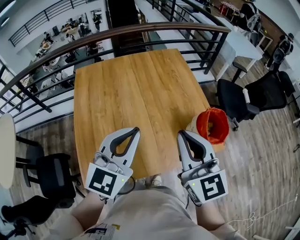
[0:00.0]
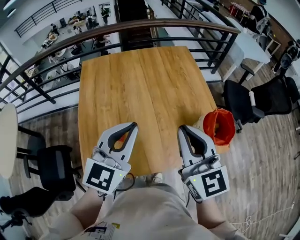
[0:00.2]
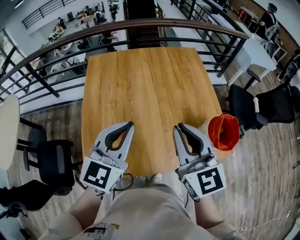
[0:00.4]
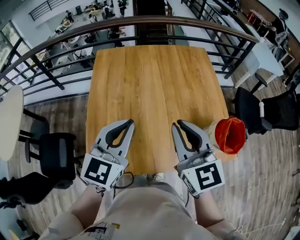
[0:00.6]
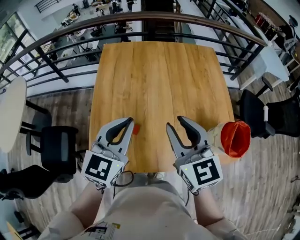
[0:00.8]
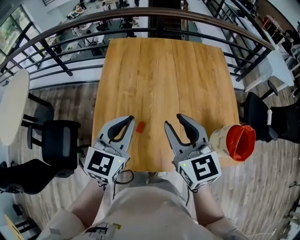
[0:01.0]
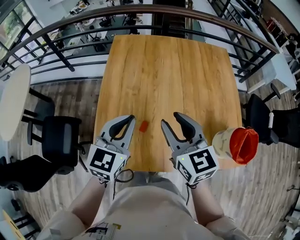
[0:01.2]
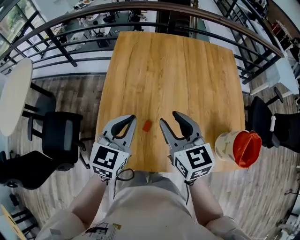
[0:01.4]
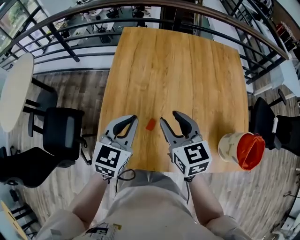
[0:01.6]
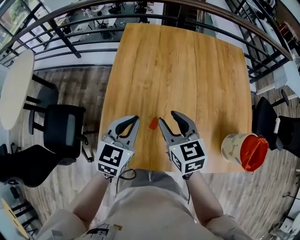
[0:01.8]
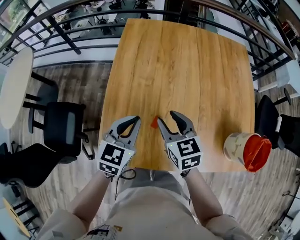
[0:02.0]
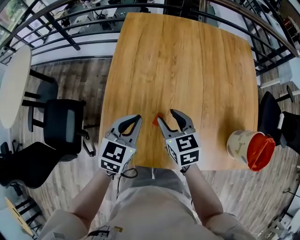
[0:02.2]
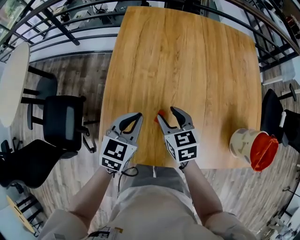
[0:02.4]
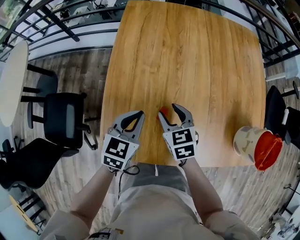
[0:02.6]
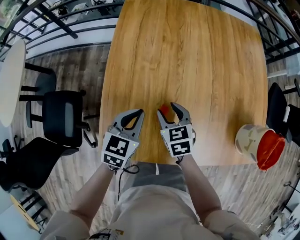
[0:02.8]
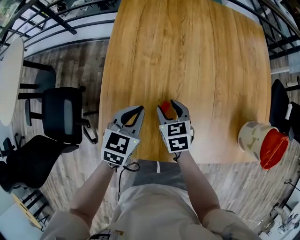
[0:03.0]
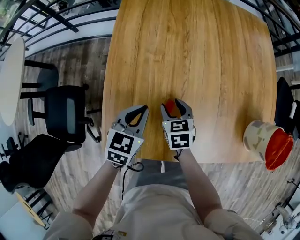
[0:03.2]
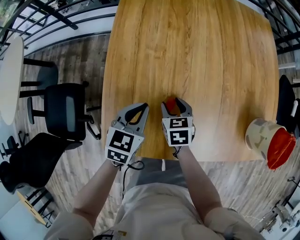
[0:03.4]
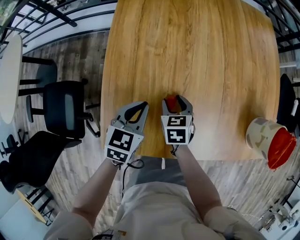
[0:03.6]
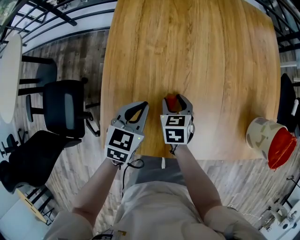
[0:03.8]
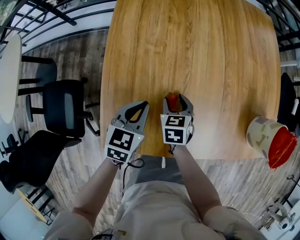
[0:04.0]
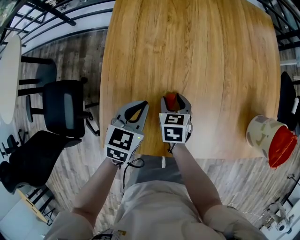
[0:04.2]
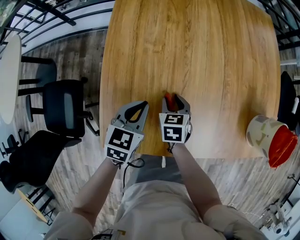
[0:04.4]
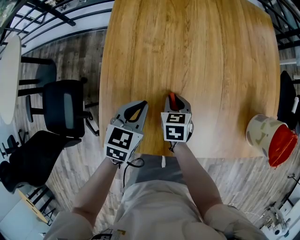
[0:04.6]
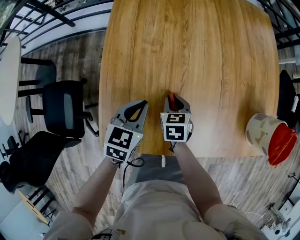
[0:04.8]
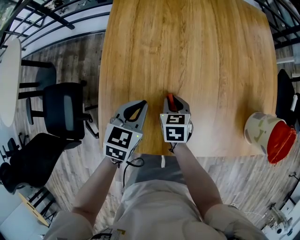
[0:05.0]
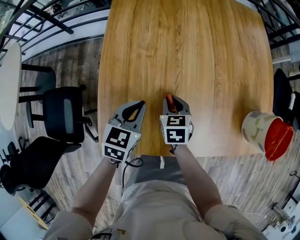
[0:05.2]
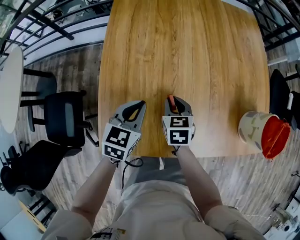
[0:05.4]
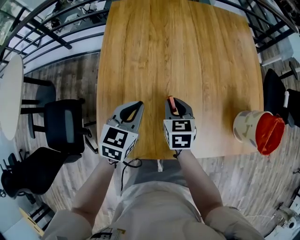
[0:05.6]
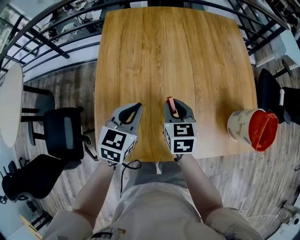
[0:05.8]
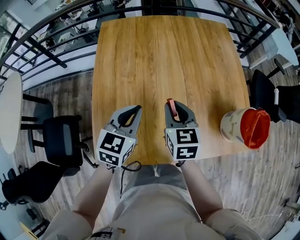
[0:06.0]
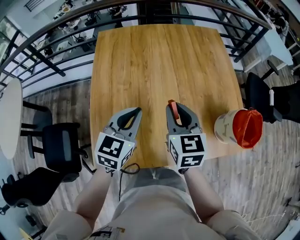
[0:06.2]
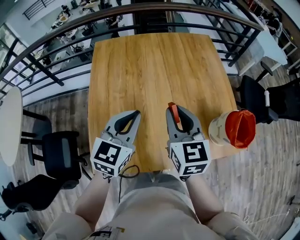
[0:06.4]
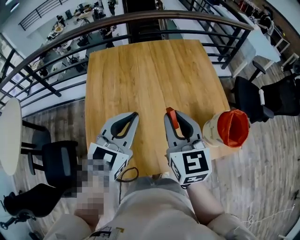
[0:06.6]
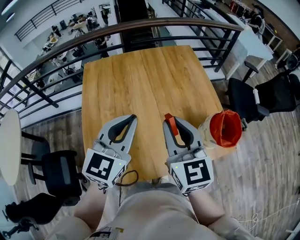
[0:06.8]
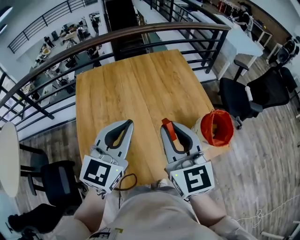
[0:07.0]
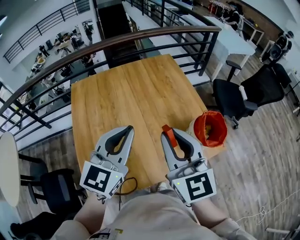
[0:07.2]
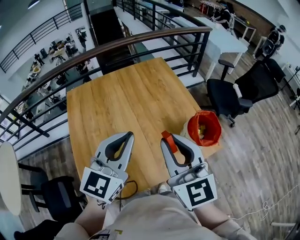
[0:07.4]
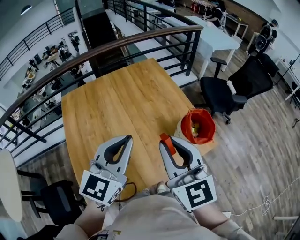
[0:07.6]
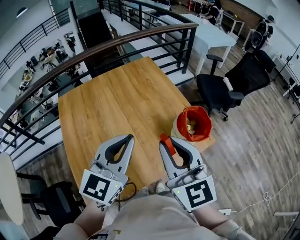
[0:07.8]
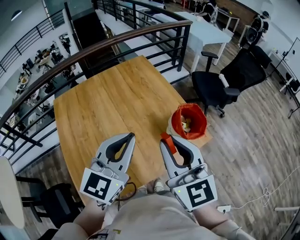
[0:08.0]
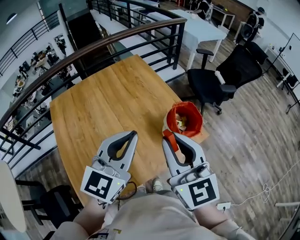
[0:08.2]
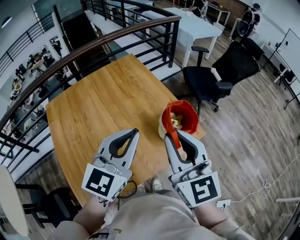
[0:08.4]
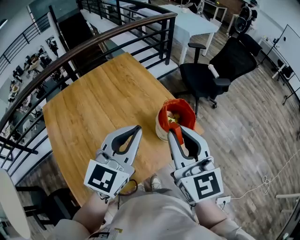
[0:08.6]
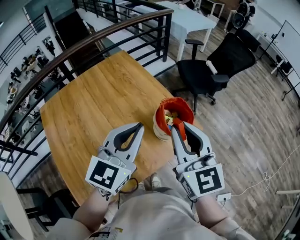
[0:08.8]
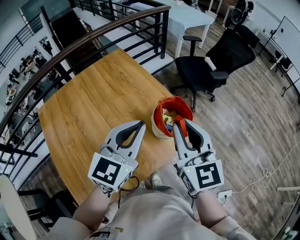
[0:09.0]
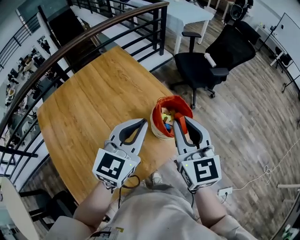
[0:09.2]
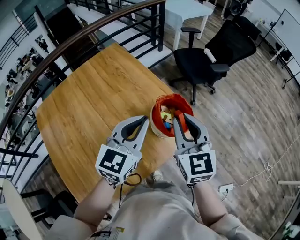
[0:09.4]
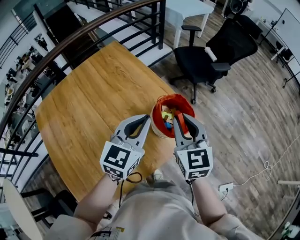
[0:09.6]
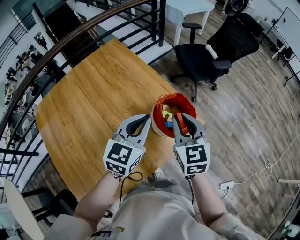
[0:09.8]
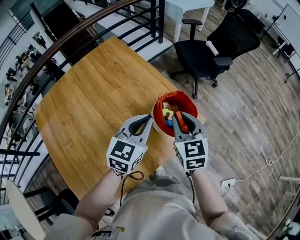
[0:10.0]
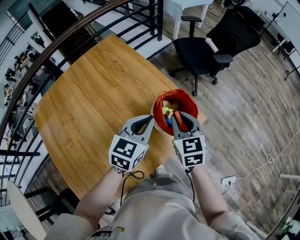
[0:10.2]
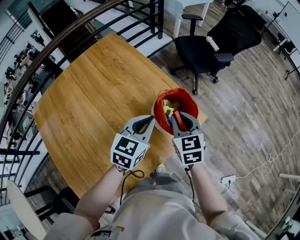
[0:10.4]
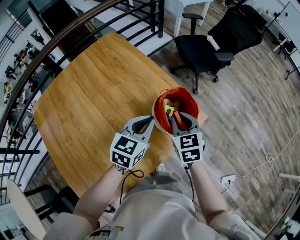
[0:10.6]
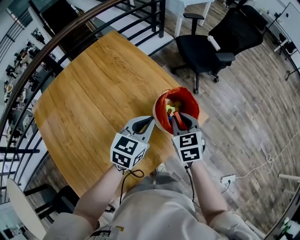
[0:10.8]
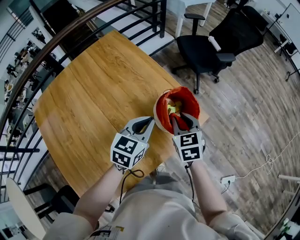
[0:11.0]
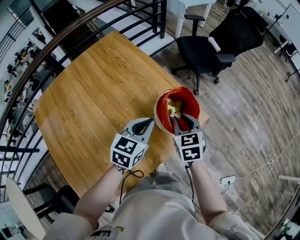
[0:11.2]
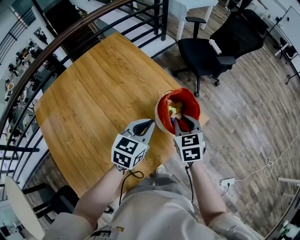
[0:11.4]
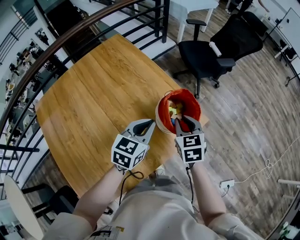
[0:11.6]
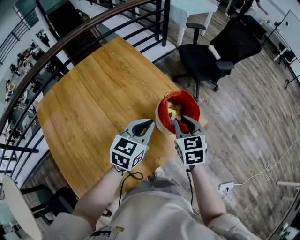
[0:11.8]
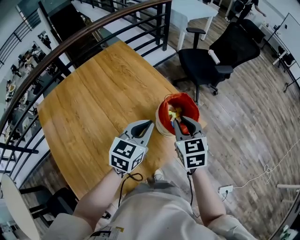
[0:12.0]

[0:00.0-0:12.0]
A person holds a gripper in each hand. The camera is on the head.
0:00.0 to 0:01.6: The grippers both shift to the left, downward and forward by some 30 cm. The right gripper changes its angle by about 30 degrees, and opens its fingers. The left gripper swivels some 30 degrees.
0:01.6 to 0:03.0: Both grippers travel together downward, about 20 cm. The right gripper changes its angle by about 20 degrees.
0:03.0 to 0:04.4: The right gripper travels downward by roughly 5 cm.
0:04.4 to 0:06.0: Both grippers travel together upward and to the right, approximately 20 cm. The right gripper rotates roughly 20 degrees.
0:06.0 to 0:07.6: The right gripper heads upward, to the right and backward, covering roughly 35 cm, and changes its angle by about 30 degrees. The left gripper goes roughly 30 cm upward and to the right, and swivels roughly 30 degrees.
0:07.6 to 0:09.0: The two grippers go roughly 15 cm to the right and forward. The right gripper changes its angle by approximately 20 degrees.
0:09.0 to 0:10.4: The grippers both shift downward and forward by about 20 cm. The right gripper changes its angle by roughly 30 degrees, while the left gripper rotates about 20 degrees.
0:10.4 to 0:12.0: The right gripper moves some 5 cm, while the left gripper shifts by approximately 5 cm.

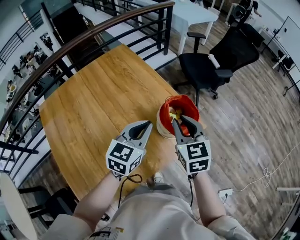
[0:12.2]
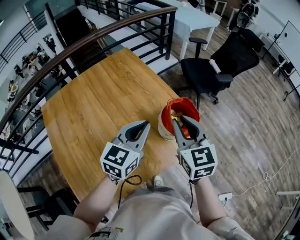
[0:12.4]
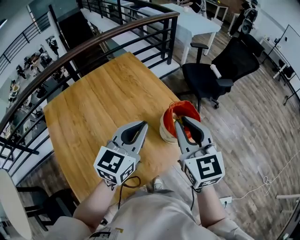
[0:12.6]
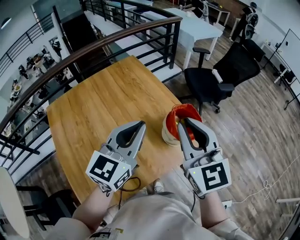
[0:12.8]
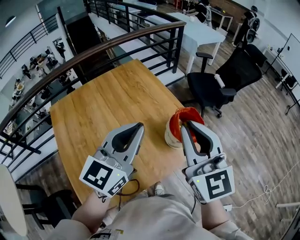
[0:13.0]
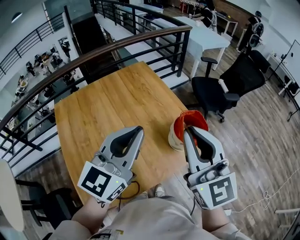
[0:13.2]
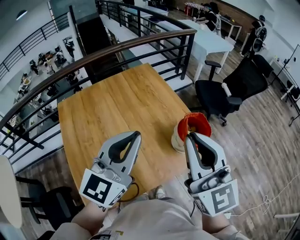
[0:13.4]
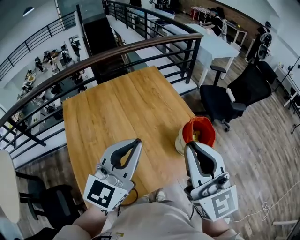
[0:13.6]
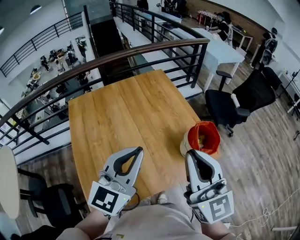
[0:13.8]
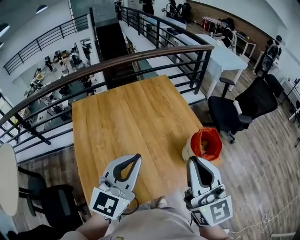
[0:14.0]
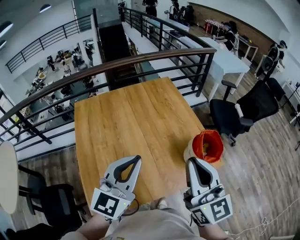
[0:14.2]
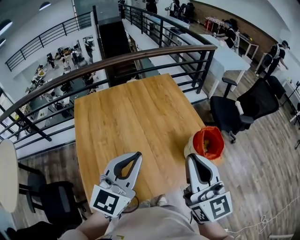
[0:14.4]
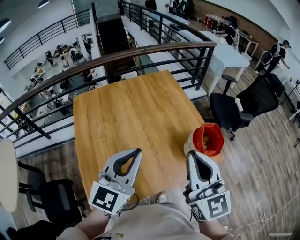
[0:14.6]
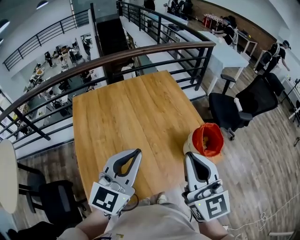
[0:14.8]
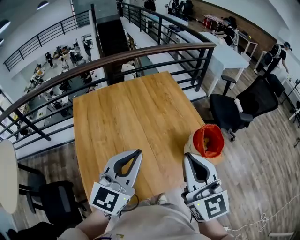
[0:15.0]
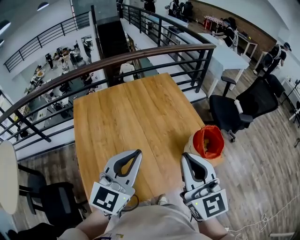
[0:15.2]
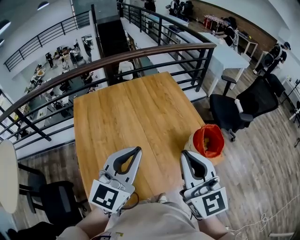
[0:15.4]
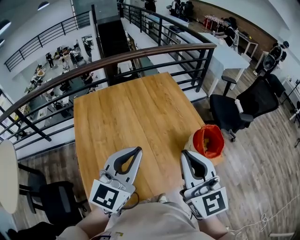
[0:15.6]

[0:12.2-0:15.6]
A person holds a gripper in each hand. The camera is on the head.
0:12.2 to 0:13.8: The two grippers go some 30 cm upward, backward and to the left. The left gripper turns by about 30 degrees; the right gripper tips its fingers upward by approximately 30 degrees.
0:13.8 to 0:15.6: The grippers make only small movements.

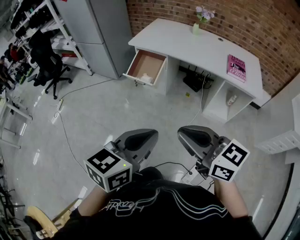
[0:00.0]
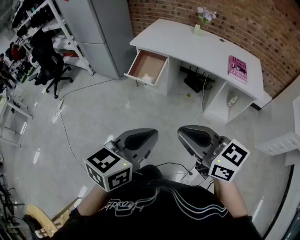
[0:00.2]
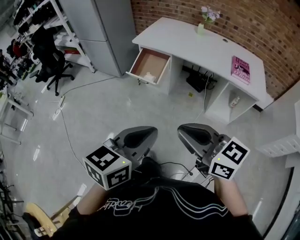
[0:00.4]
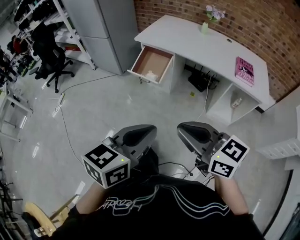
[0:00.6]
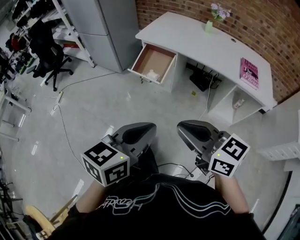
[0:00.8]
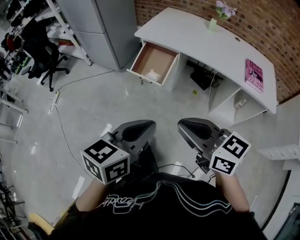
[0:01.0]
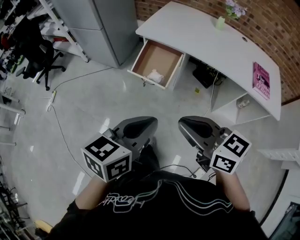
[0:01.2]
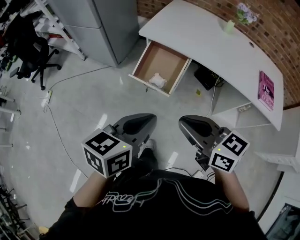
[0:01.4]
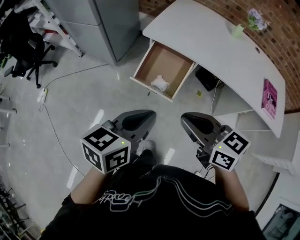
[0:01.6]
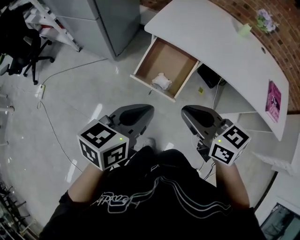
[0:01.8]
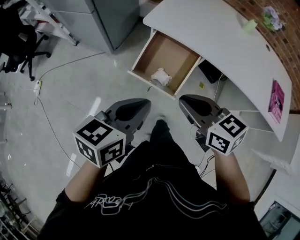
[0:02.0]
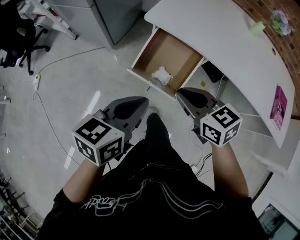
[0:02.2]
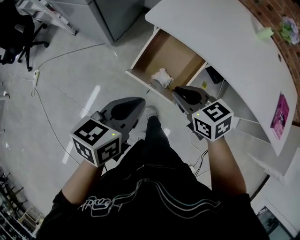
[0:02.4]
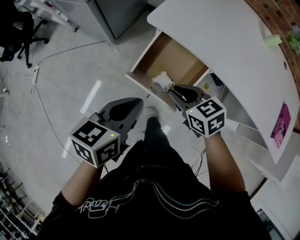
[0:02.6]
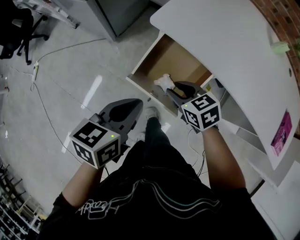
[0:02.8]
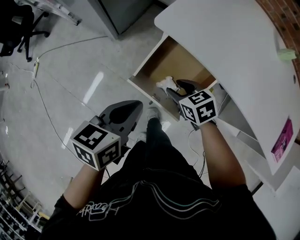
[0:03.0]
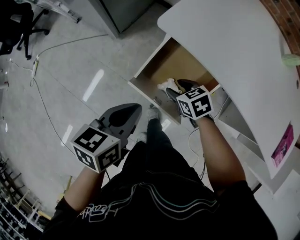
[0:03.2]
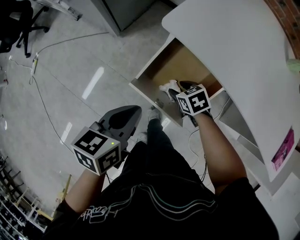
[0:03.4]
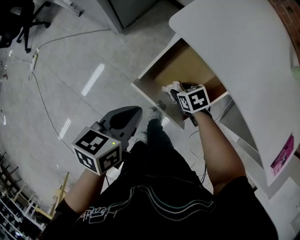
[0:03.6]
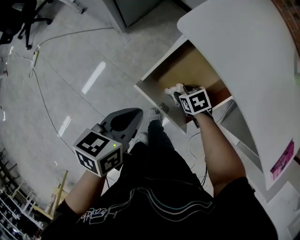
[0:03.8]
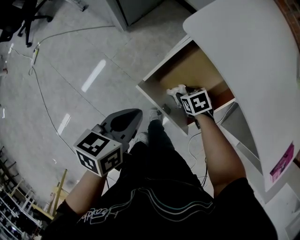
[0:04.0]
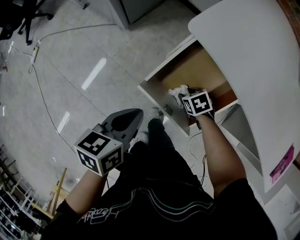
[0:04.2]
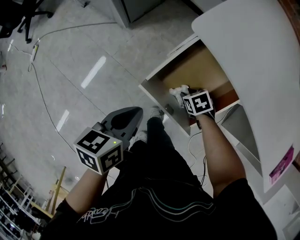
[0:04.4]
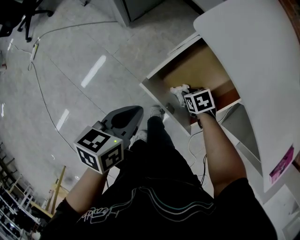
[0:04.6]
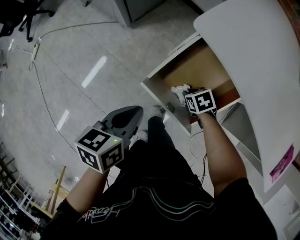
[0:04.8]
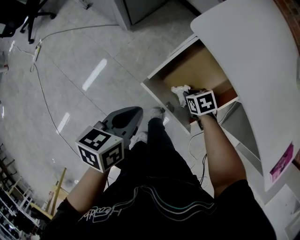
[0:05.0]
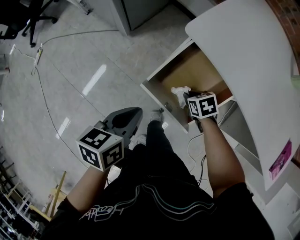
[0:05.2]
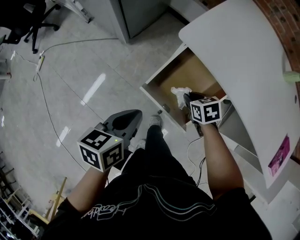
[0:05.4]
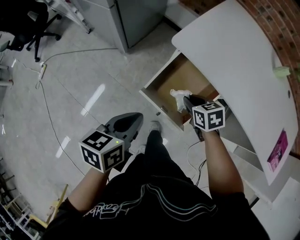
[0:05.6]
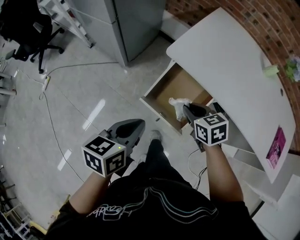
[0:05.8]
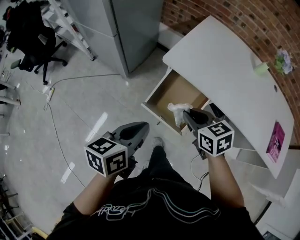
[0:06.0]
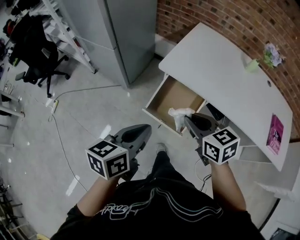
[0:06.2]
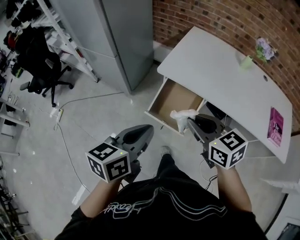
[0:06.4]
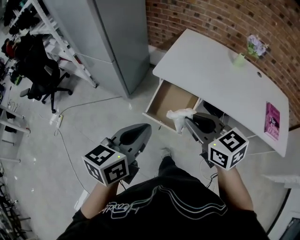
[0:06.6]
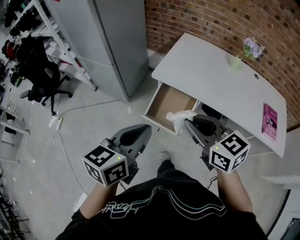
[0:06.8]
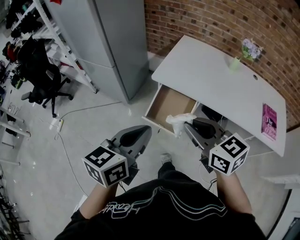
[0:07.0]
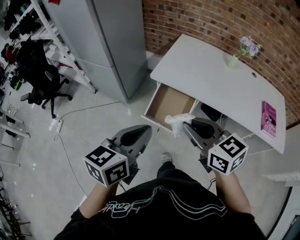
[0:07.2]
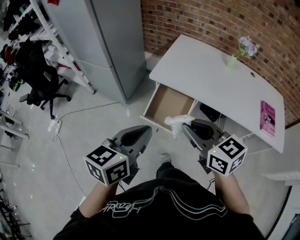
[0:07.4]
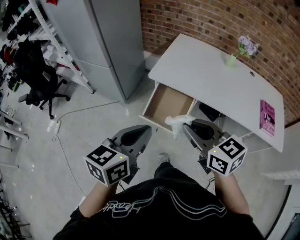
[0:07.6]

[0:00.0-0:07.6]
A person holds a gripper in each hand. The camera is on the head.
0:00.0 to 0:01.6: Both grippers are carried forward, about 50 cm.
0:01.6 to 0:03.0: The left gripper shifts approximately 35 cm forward and downward; the right gripper travels downward and forward by some 50 cm, angles its fingers downward, by approximately 30 degrees, and opens its fingers.
0:03.0 to 0:04.6: The left gripper travels downward by about 10 cm; the right gripper goes roughly 20 cm downward, and changes its angle by roughly 30 degrees.
0:04.6 to 0:06.0: The right gripper shifts approximately 40 cm upward, and tilts its fingers approximately 40 degrees upward. The left gripper shifts some 25 cm upward.
0:06.0 to 0:07.6: The grippers both shift upward and backward by about 25 cm. The right gripper rotates about 20 degrees. Meanwhile the left gripper swivels approximately 20 degrees.
